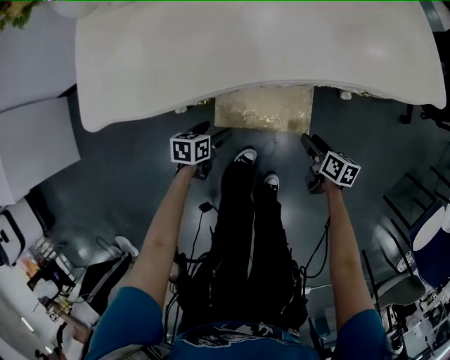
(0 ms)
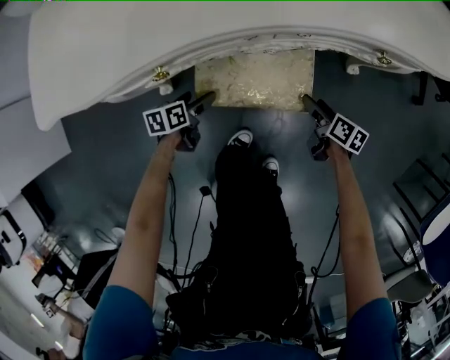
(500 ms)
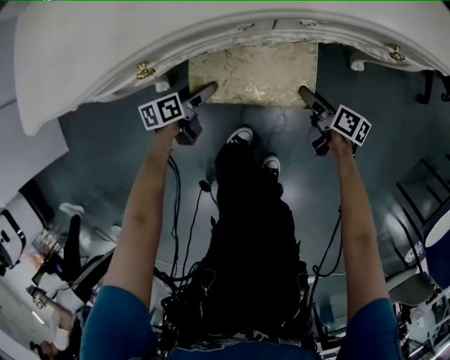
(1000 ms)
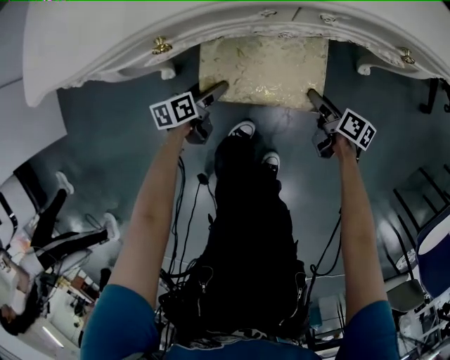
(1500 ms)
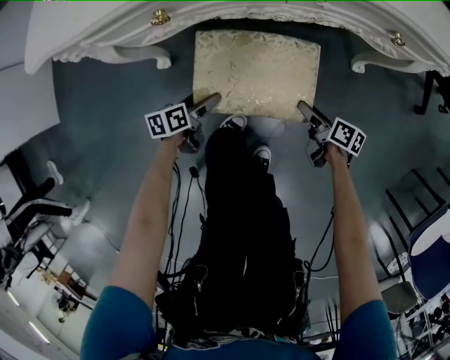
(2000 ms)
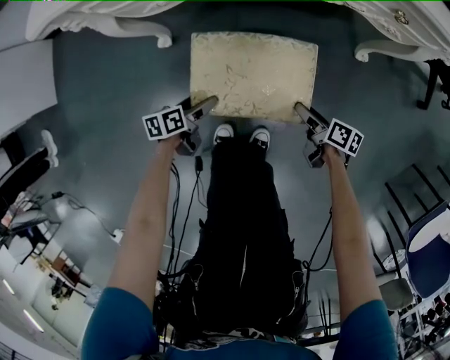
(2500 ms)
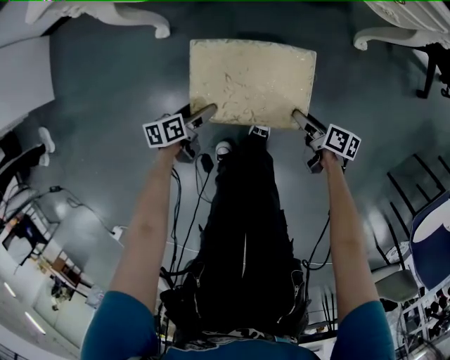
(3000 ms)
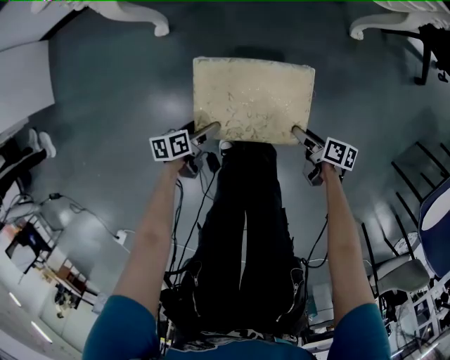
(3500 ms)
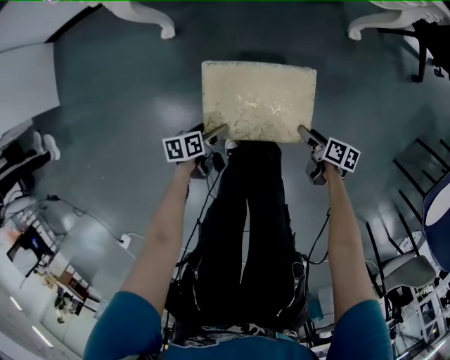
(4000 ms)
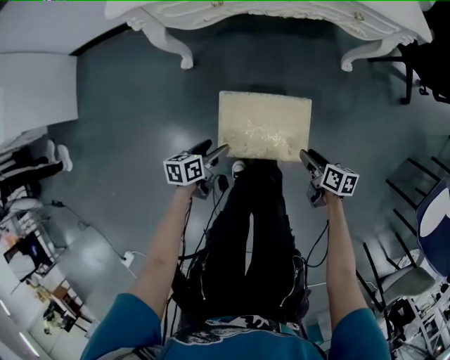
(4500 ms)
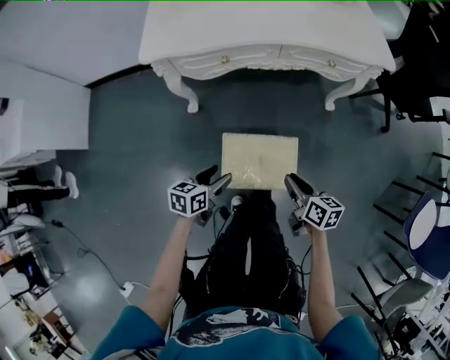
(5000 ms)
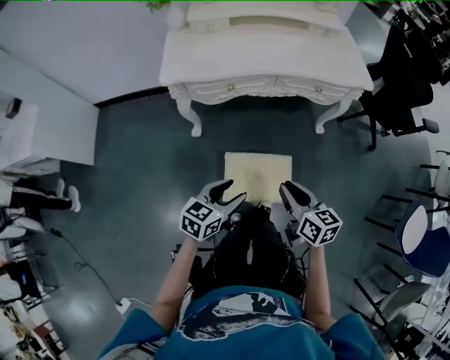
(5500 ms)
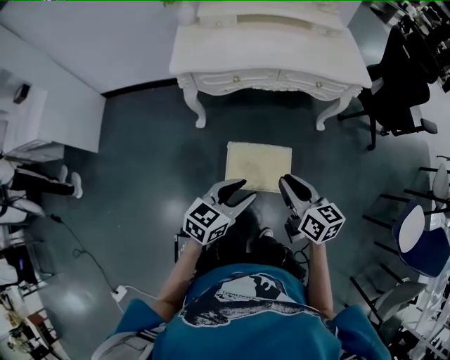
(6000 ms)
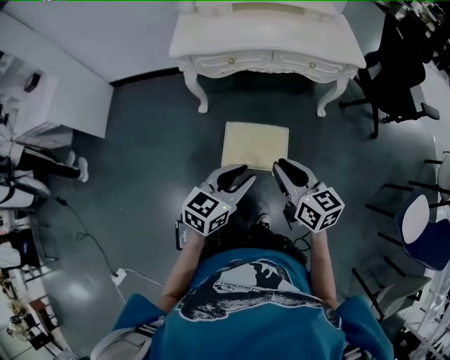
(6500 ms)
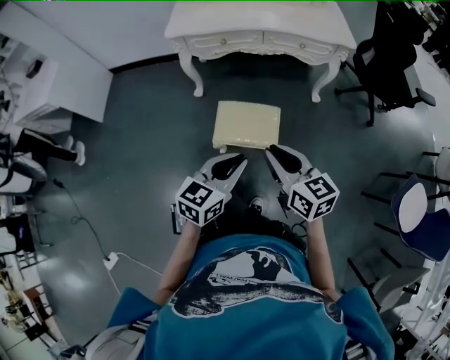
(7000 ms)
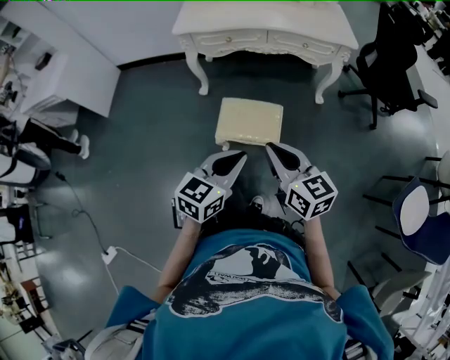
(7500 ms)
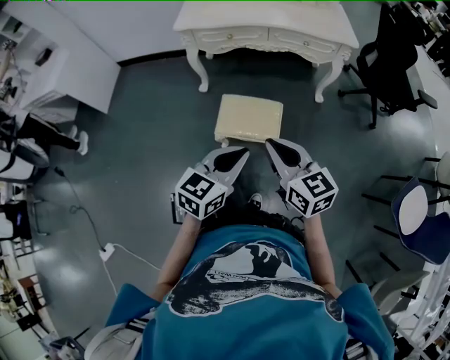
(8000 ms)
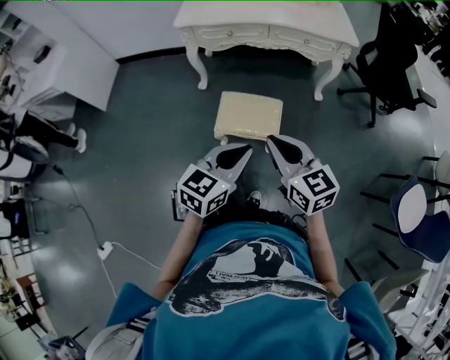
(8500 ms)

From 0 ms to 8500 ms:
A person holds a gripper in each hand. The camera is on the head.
From 0 ms to 2000 ms: The left gripper travels downward and backward by about 10 cm, and changes its angle by about 20 degrees. Meanwhile the right gripper shifts approximately 10 cm downward.
From 2000 ms to 4000 ms: The grippers both shift backward by about 30 cm.
From 4000 ms to 6500 ms: The grippers both shift upward by some 50 cm. The right gripper rolls counterclockwise, seen from behind, by roughly 50 degrees, and closes. The left gripper twists roughly 50 degrees clockwise, seen from behind, and closes its fingers.
From 6500 ms to 8500 ms: The left gripper shifts approximately 15 cm backward and to the right. Meanwhile the right gripper is displaced backward by some 10 cm.

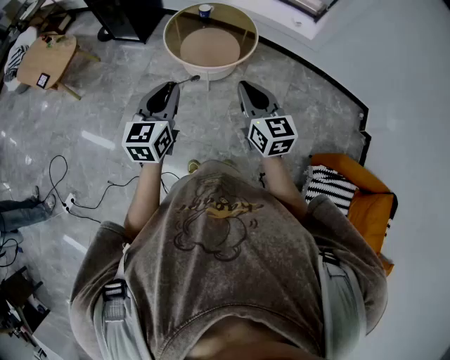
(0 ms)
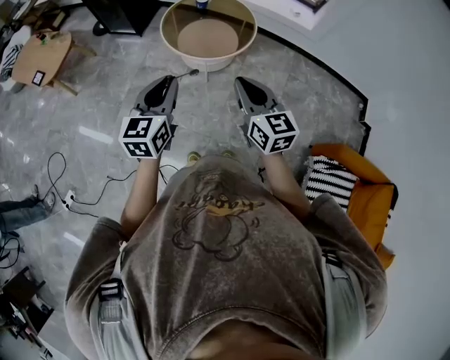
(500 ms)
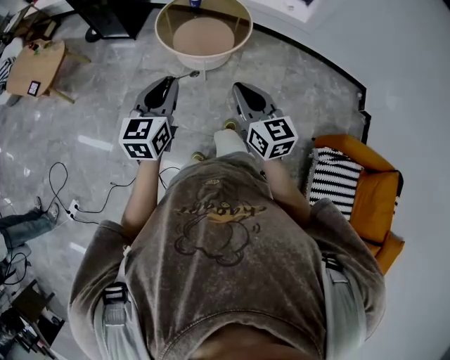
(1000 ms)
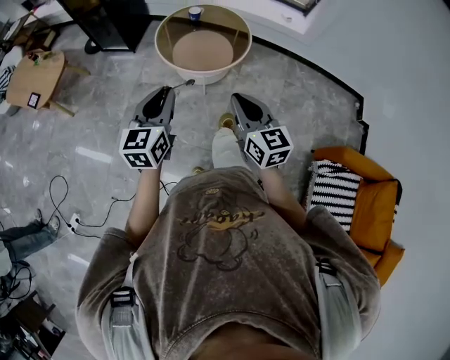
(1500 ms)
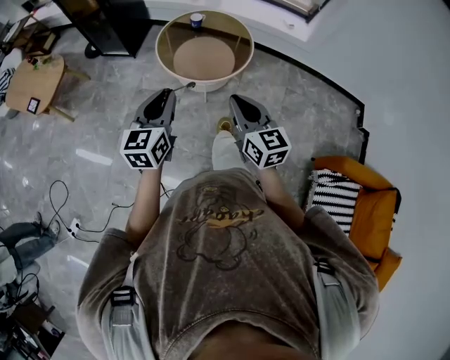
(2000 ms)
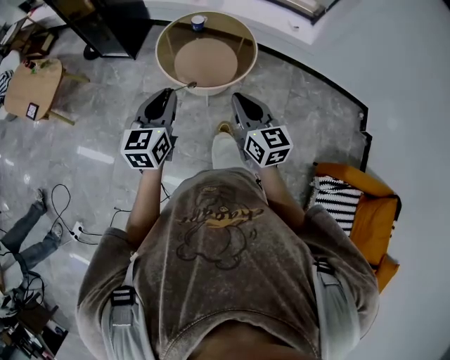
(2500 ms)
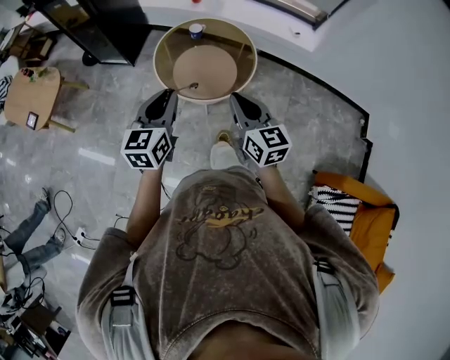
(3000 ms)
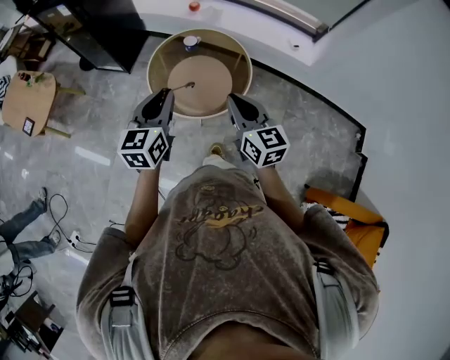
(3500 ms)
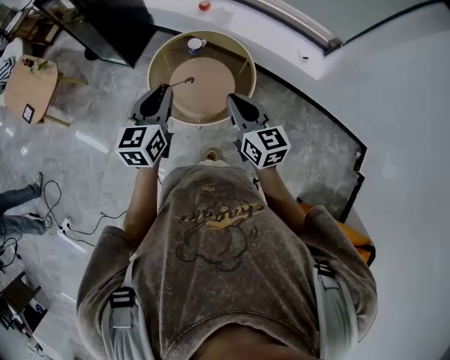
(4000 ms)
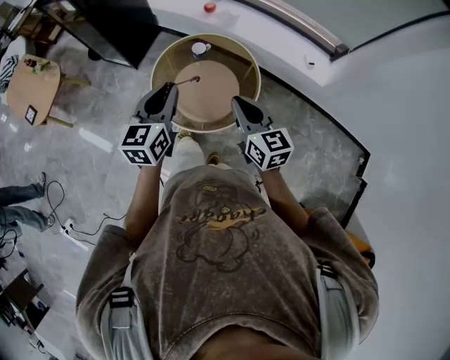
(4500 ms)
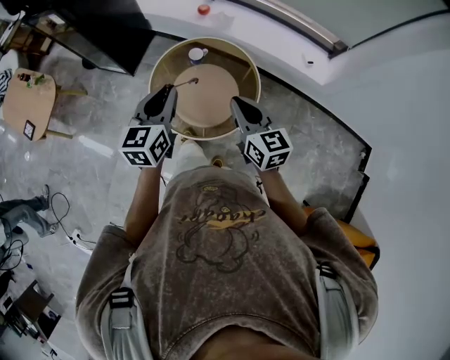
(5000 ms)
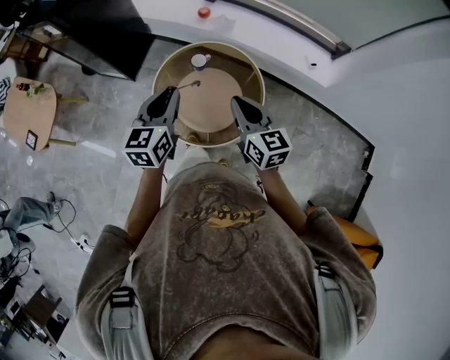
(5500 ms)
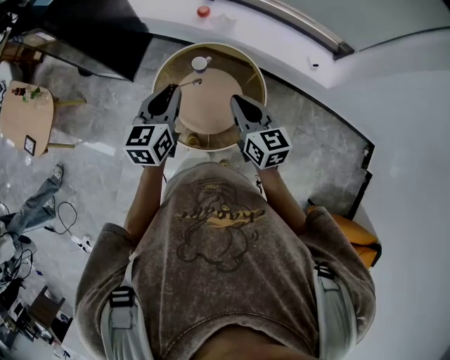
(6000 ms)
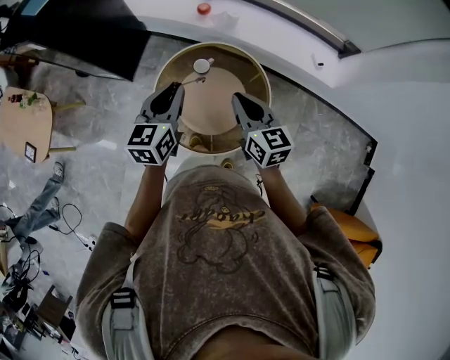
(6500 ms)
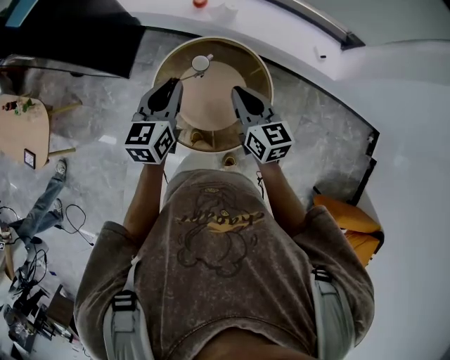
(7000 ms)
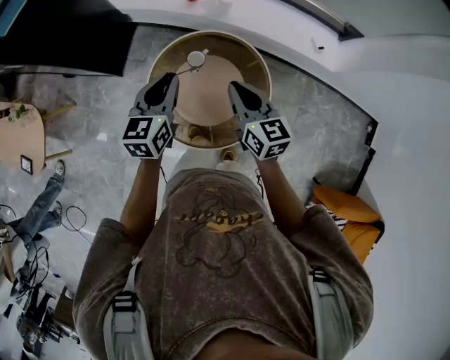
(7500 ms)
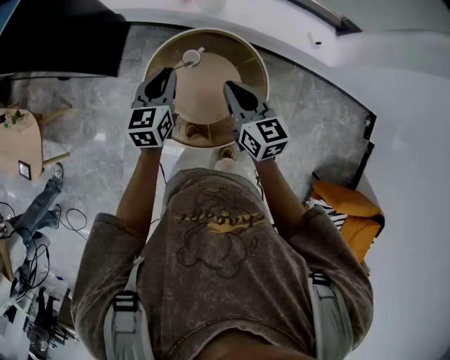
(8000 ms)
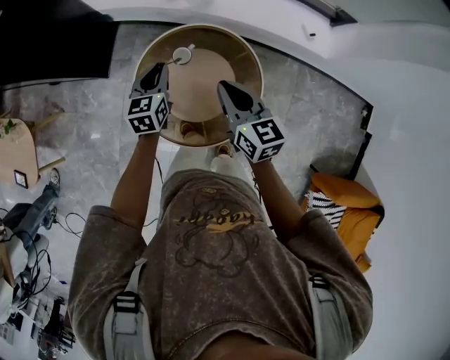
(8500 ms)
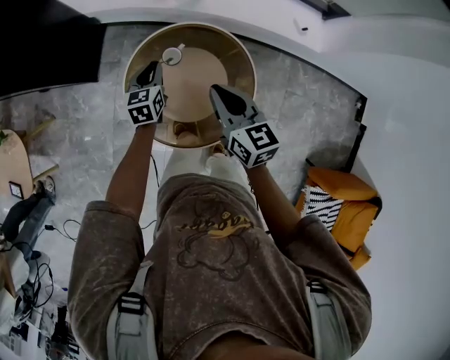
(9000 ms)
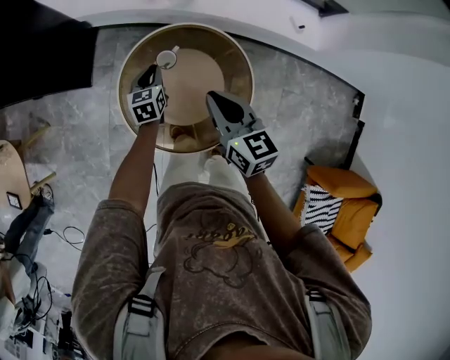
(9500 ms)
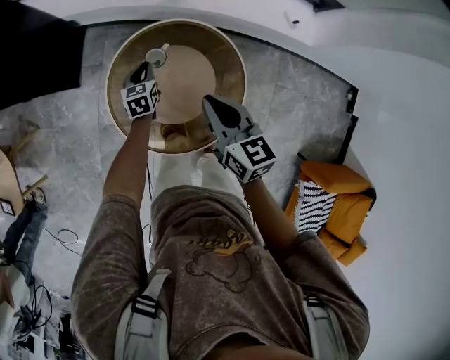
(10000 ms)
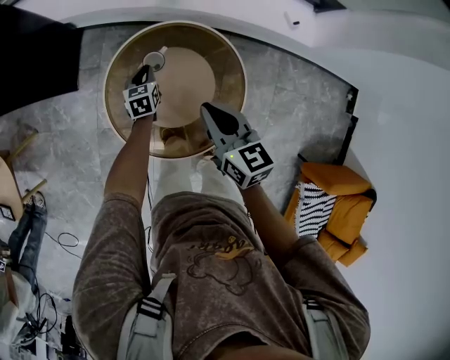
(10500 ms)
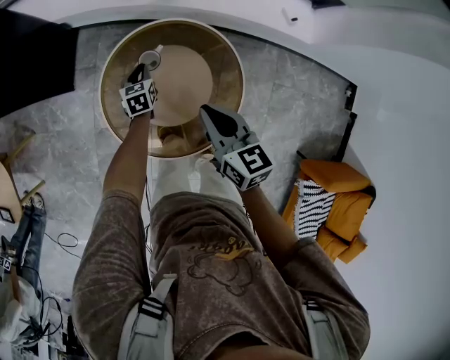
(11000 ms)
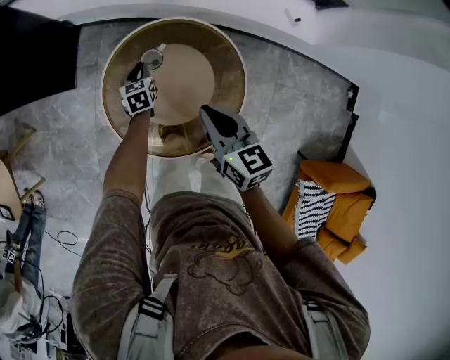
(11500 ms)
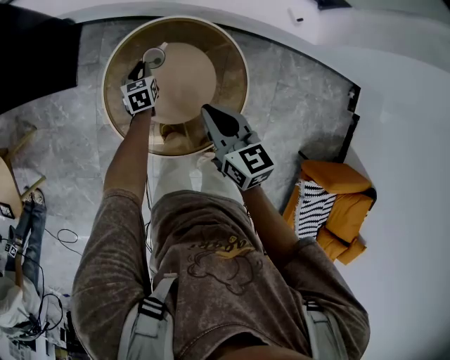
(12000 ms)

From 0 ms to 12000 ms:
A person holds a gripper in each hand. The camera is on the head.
From 0 ms to 2000 ms: The left gripper is displaced forward by about 10 cm, while the right gripper is displaced to the left by about 5 cm.
From 2000 ms to 4000 ms: The grippers both shift forward by roughly 30 cm.
From 4000 ms to 6000 ms: Both grippers move forward, about 20 cm.
From 6000 ms to 8000 ms: The right gripper is displaced forward and downward by approximately 10 cm; the left gripper shifts about 15 cm forward and downward.
From 8000 ms to 10000 ms: The left gripper goes about 25 cm downward. The right gripper shifts by about 5 cm.
From 10000 ms to 12000 ms: The left gripper goes about 5 cm downward.

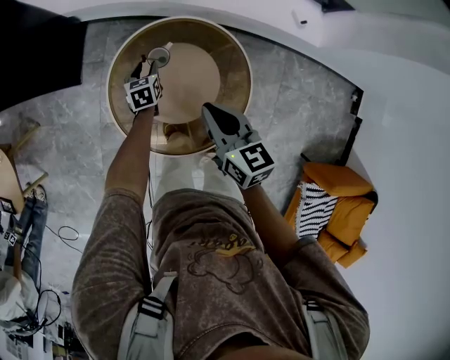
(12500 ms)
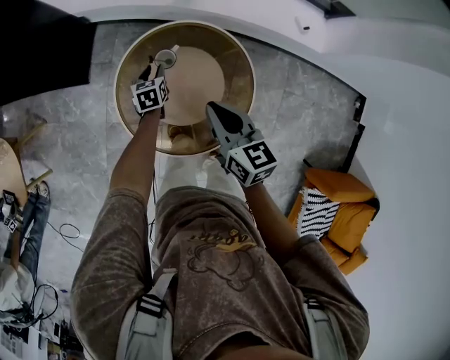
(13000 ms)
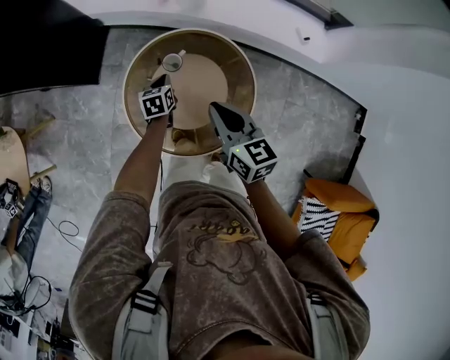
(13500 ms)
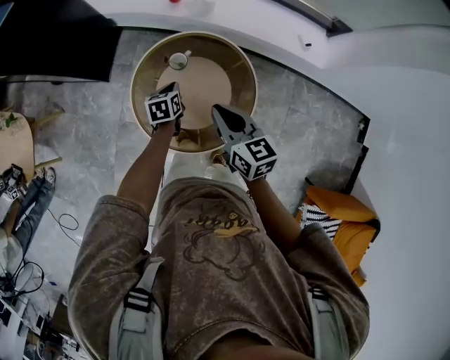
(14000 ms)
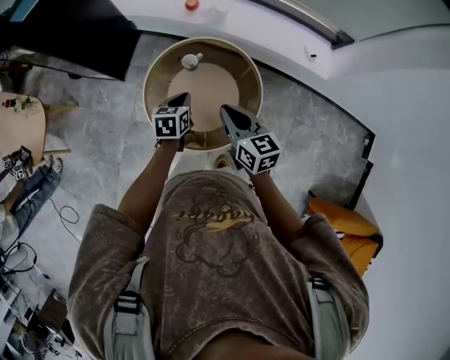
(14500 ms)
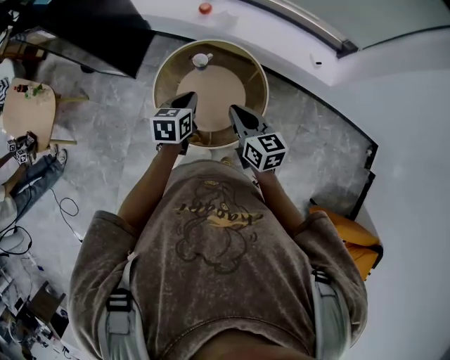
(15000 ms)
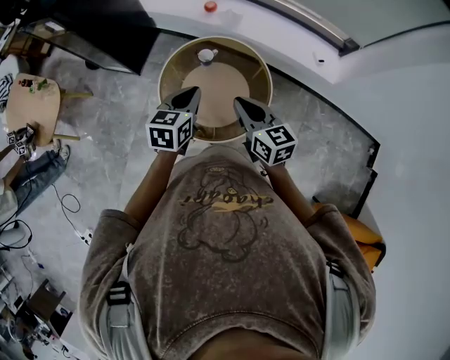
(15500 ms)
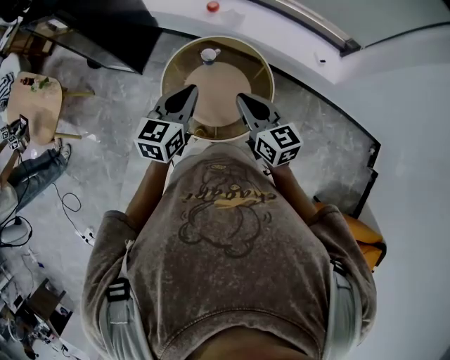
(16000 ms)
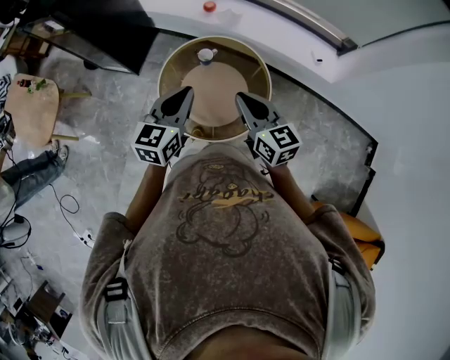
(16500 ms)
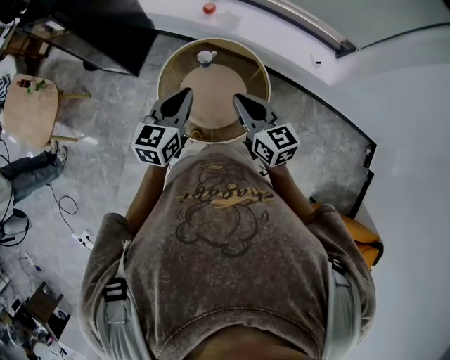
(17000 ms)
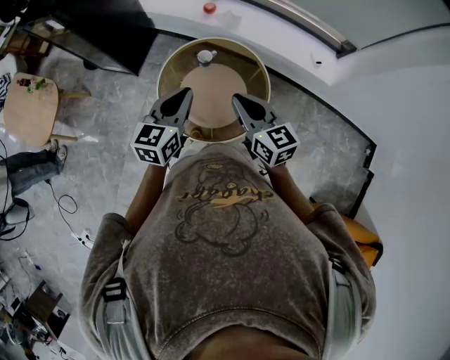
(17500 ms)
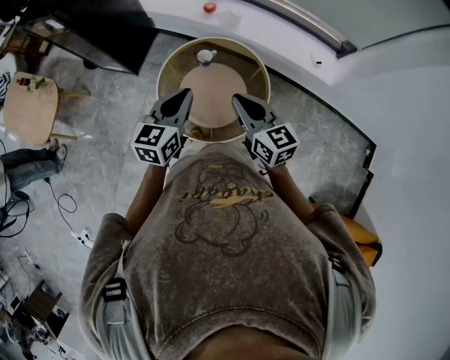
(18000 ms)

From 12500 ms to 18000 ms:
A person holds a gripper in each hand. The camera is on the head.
From 12500 ms to 14500 ms: The right gripper shifts some 10 cm backward and upward. The left gripper moves upward and backward, approximately 25 cm, and closes.
From 14500 ms to 16000 ms: The right gripper is displaced upward by about 10 cm. Meanwhile the left gripper goes roughly 20 cm upward and backward, and rotates roughly 30 degrees.
From 16000 ms to 18000 ms: The two grippers keep their place.

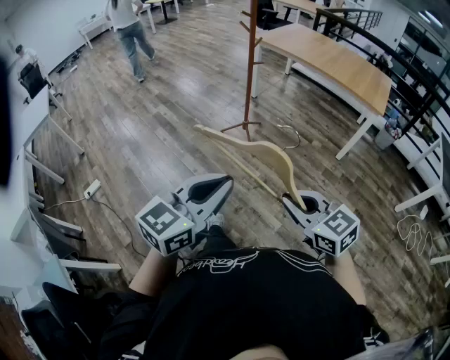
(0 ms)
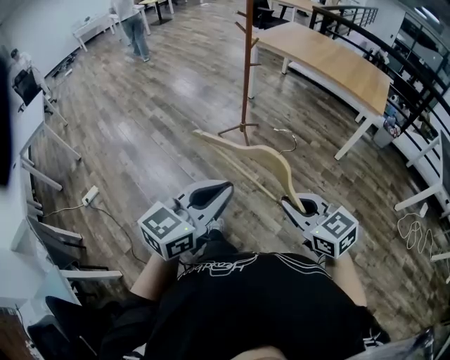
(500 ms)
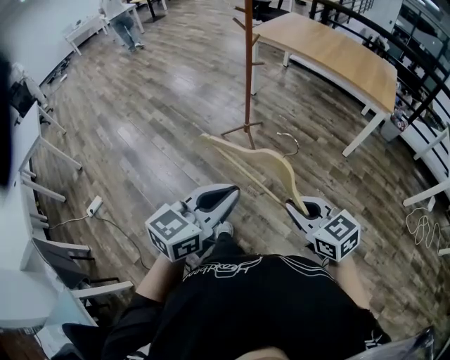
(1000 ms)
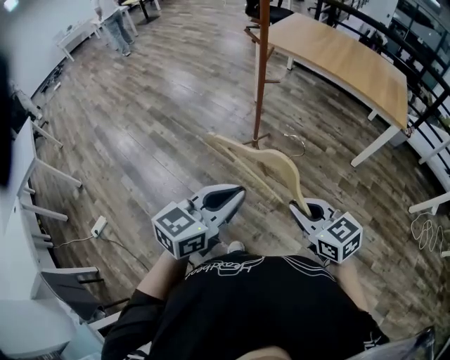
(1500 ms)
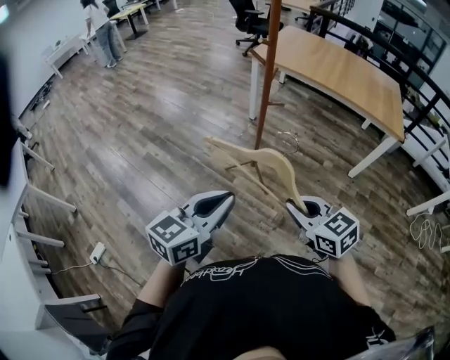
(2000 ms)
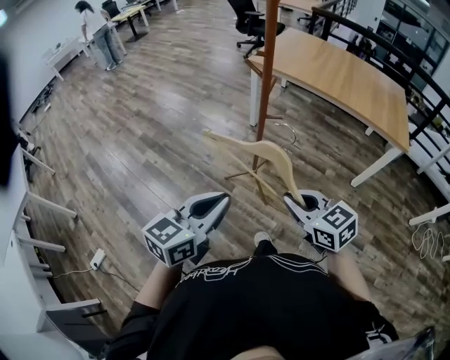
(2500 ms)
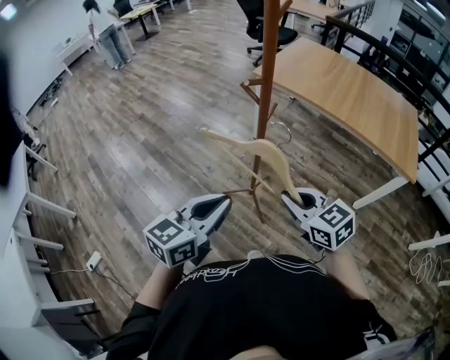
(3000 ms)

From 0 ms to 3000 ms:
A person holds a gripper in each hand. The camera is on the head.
From 0 ms to 1500 ms: Both grippers move forward, about 25 cm.
From 1500 ms to 3000 ms: The two grippers go some 30 cm forward.
